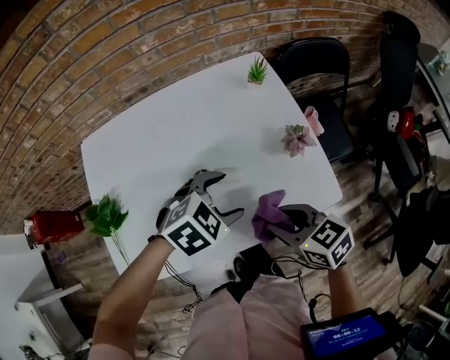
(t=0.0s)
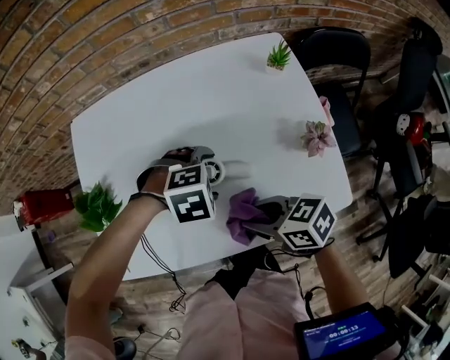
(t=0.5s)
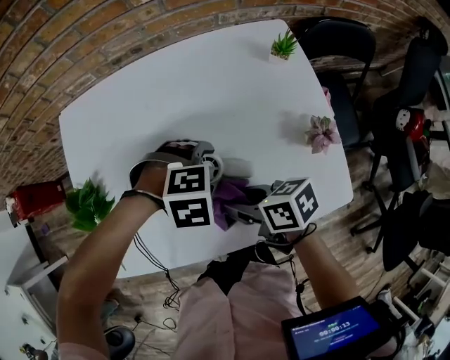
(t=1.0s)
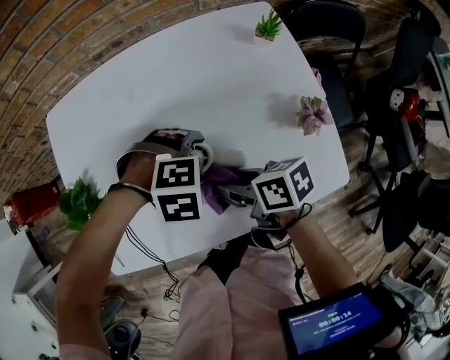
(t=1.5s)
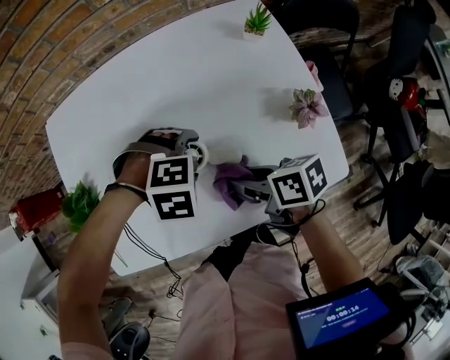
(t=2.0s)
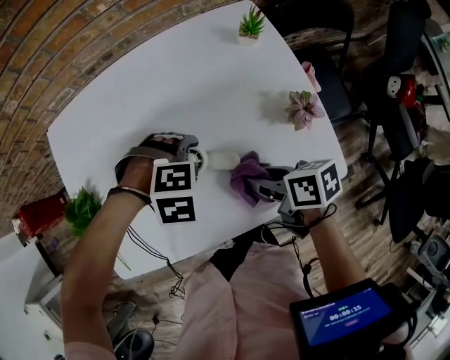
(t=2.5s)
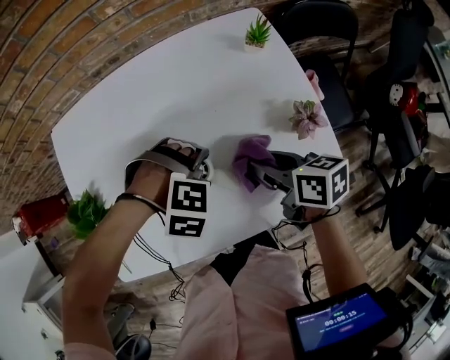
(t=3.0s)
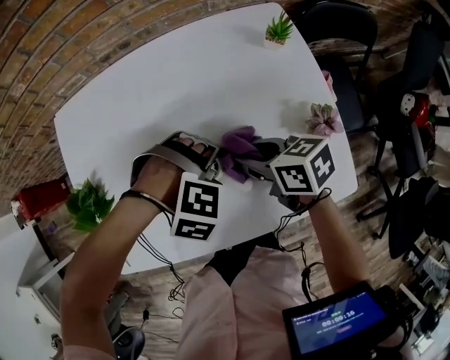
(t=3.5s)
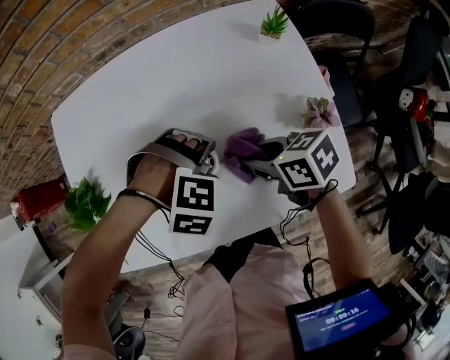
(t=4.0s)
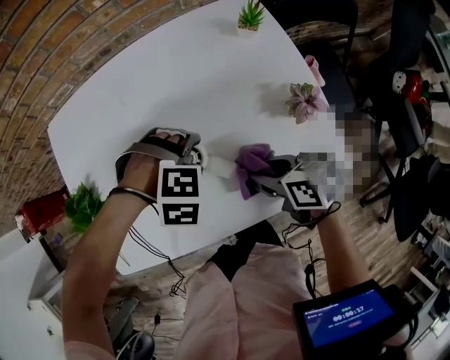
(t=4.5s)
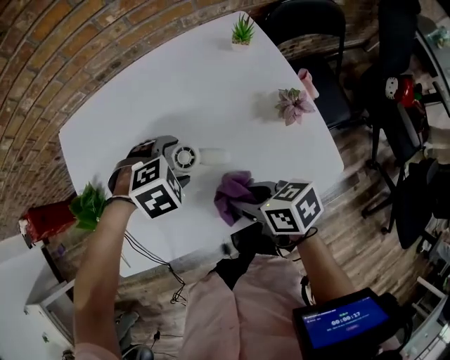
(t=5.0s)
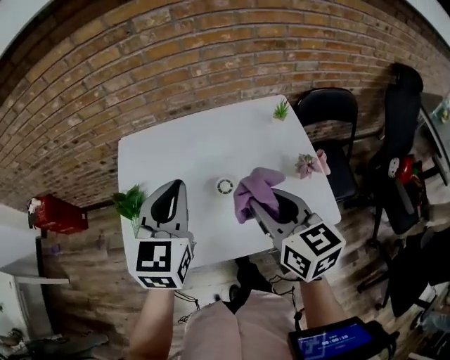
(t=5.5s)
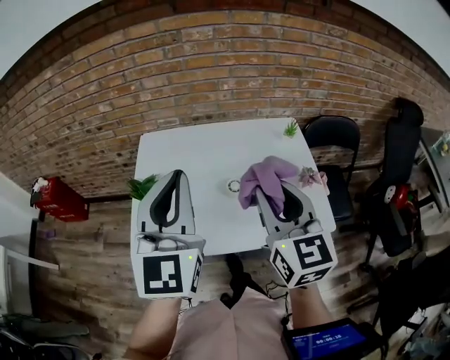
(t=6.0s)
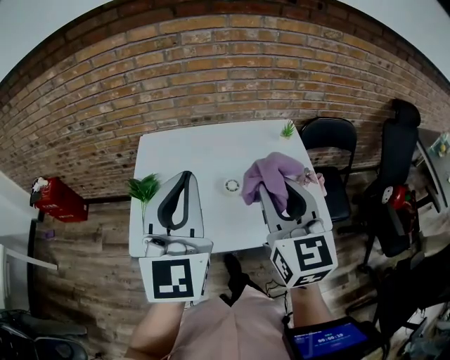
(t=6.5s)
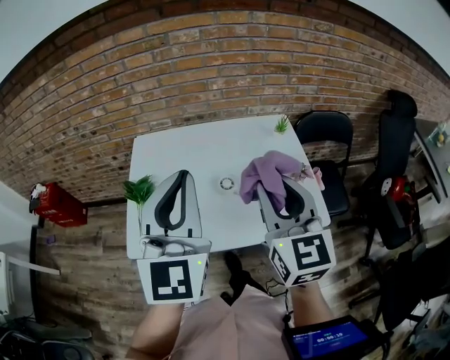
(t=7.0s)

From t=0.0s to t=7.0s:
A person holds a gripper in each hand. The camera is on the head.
From t=0.0s to t=2.0s: The right gripper ends up about 10 cm from where it was, and swivels about 40 degrees, while the left gripper goes some 10 cm downward, and turns by roughly 40 degrees.
From t=2.0s to t=3.5s: The right gripper shifts by about 10 cm, and swivels roughly 20 degrees.
From t=3.5s to t=5.0s: The right gripper ends up some 15 cm from where it was. Meanwhile the left gripper turns by some 30 degrees.
From t=5.0s to t=7.0s: The grippers both shift upward by roughly 35 cm. The right gripper angles its fingers upward, by approximately 30 degrees. Meanwhile the left gripper points its fingers about 80 degrees further upward, and closes.

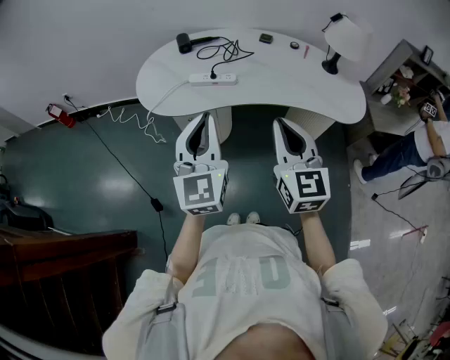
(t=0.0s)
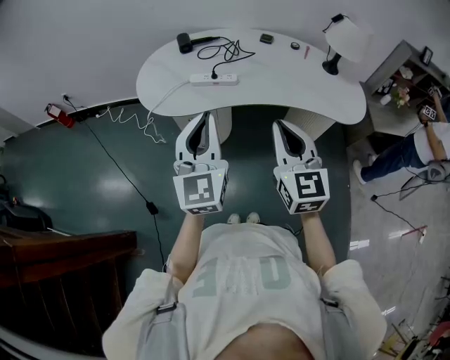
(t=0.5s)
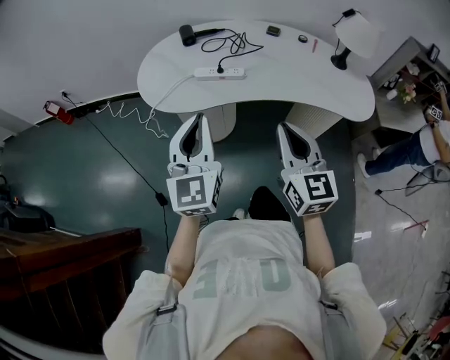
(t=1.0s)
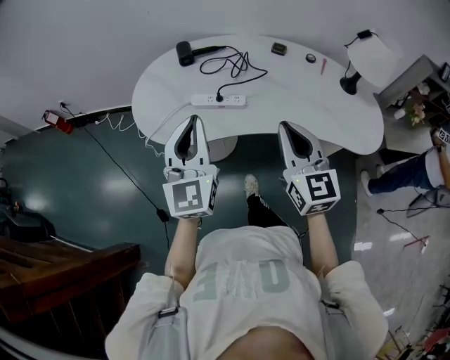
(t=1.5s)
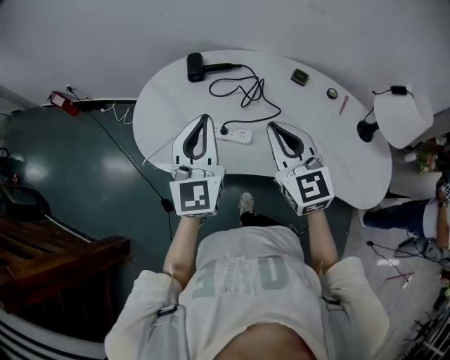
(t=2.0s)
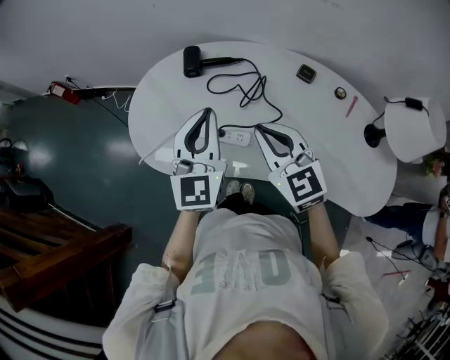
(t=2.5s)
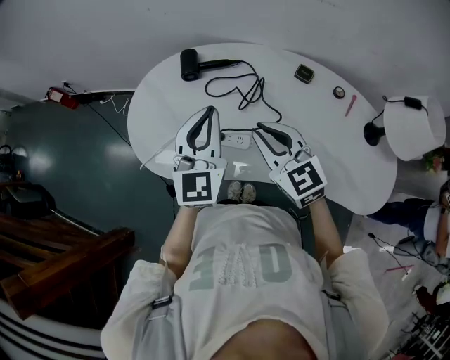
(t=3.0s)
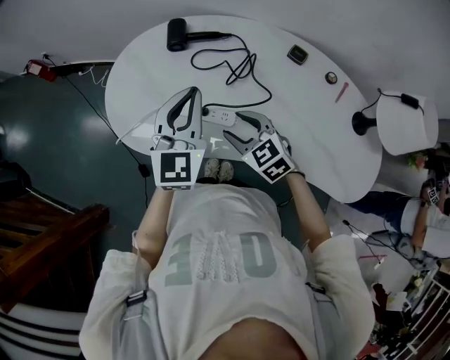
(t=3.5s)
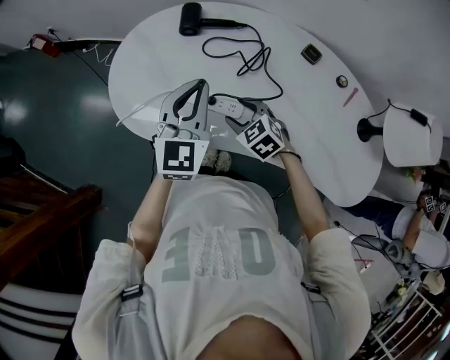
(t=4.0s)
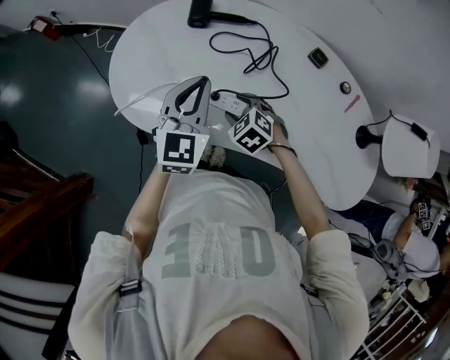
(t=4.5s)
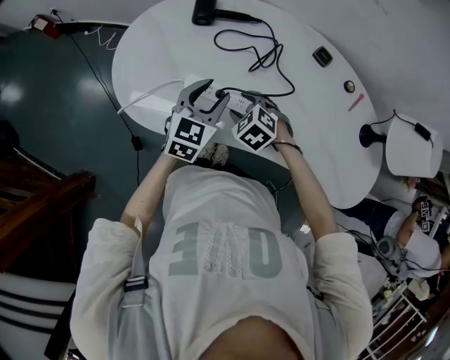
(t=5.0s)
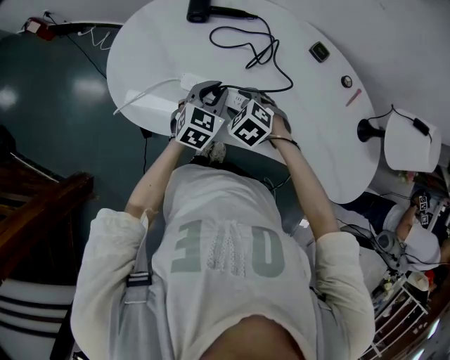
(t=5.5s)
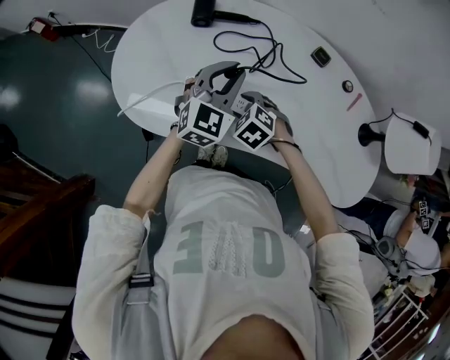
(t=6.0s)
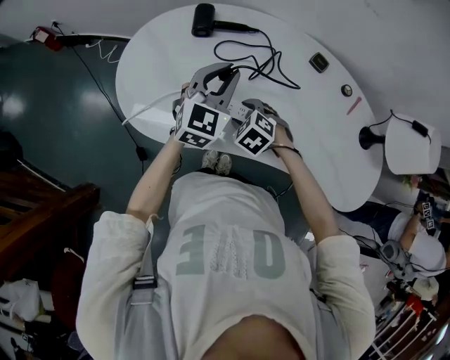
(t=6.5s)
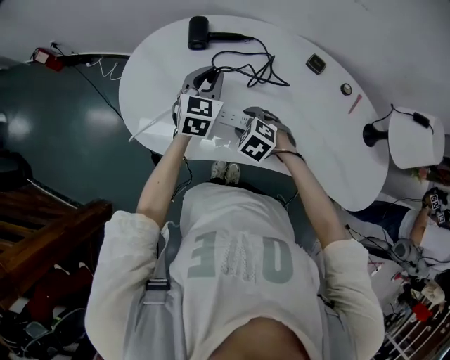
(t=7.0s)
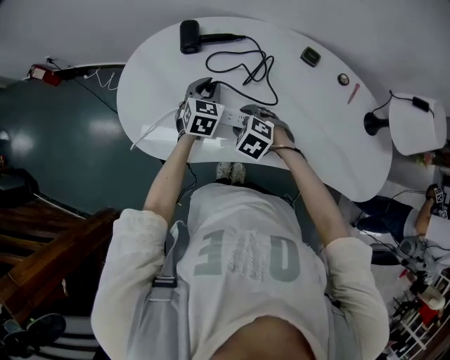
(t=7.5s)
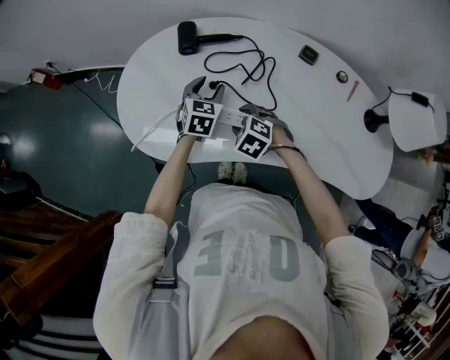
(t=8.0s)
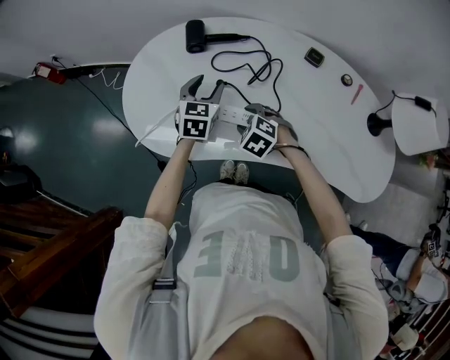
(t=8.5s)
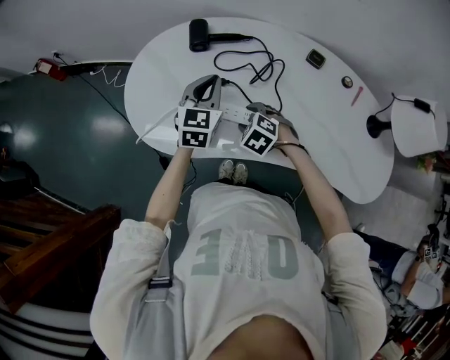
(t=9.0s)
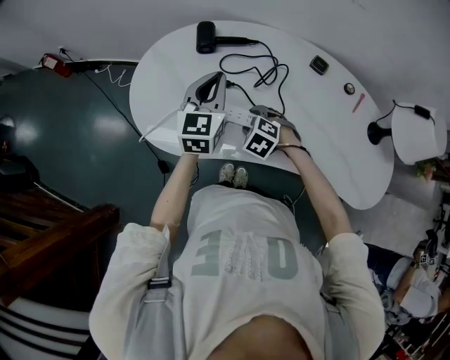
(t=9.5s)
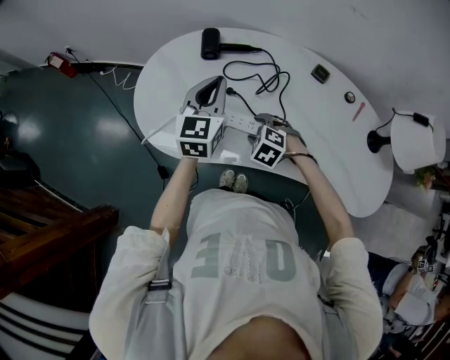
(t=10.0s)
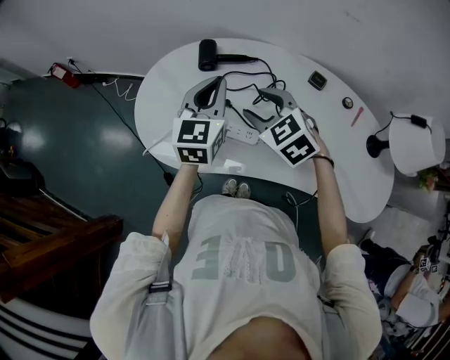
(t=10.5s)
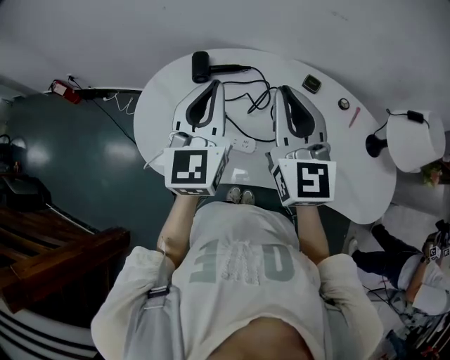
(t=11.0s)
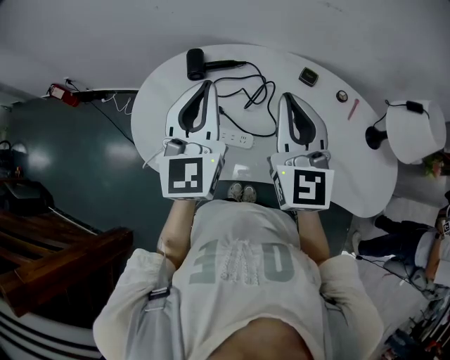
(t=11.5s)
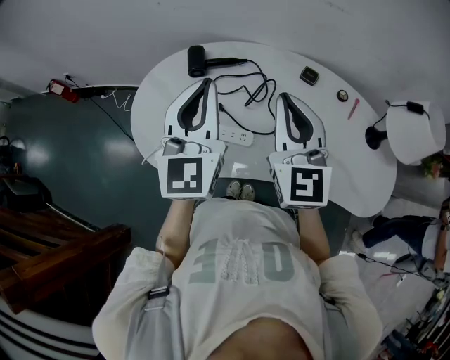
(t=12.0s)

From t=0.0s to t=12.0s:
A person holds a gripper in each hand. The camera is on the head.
From t=0.0s to t=2.0s: The grippers both shift forward by approximately 30 cm. The right gripper changes its angle by approximately 20 degrees.
From t=2.0s to t=4.0s: The right gripper heads downward, covering approximately 25 cm, tilts its fingers some 40 degrees downward, and opens its fingers. The left gripper shifts roughly 10 cm downward and forward.
From t=4.0s to t=6.0s: The left gripper goes roughly 5 cm to the right, moves some 15 cm downward and comes back, and opens and closes again.
From t=6.0s to t=8.0s: The left gripper moves downward and forward, some 15 cm, rotates approximately 20 degrees, and opens its fingers.
From t=8.0s to t=10.0s: The left gripper heads upward, covering some 15 cm, changes its angle by approximately 30 degrees, and closes.
From t=10.0s to t=12.0s: The left gripper moves upward, roughly 15 cm. Meanwhile the right gripper shifts about 35 cm upward, points its fingers roughly 70 degrees further upward, and closes.

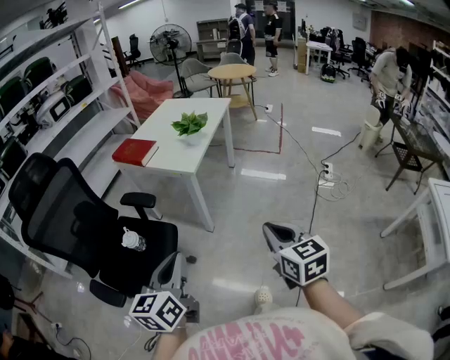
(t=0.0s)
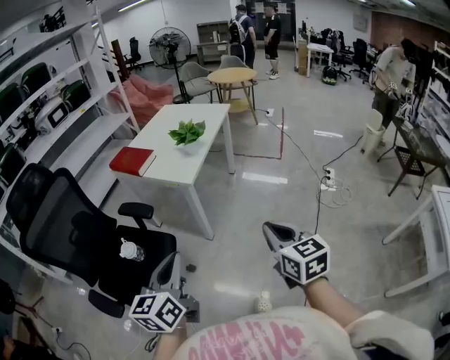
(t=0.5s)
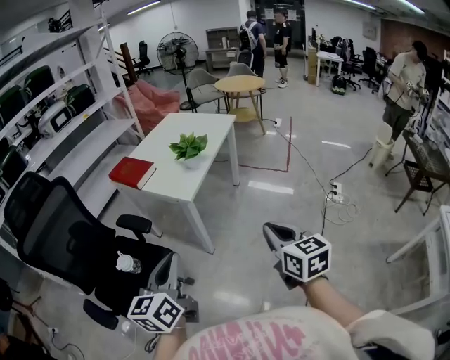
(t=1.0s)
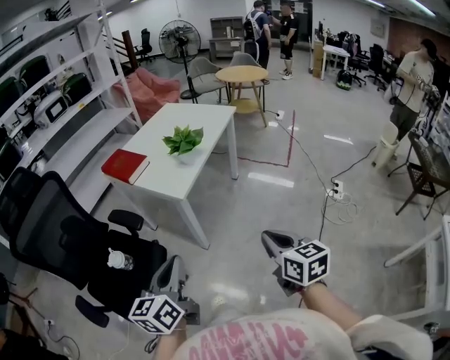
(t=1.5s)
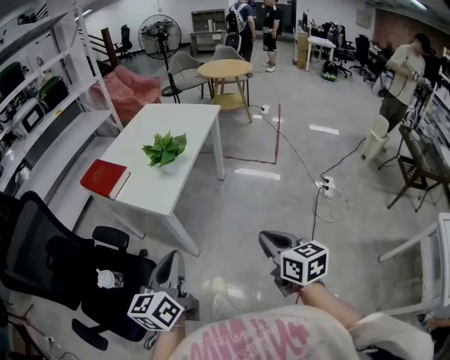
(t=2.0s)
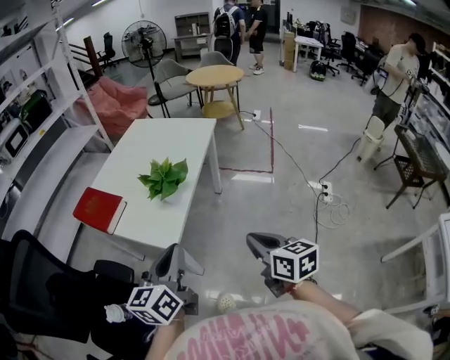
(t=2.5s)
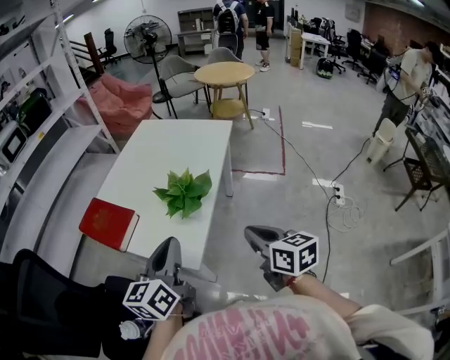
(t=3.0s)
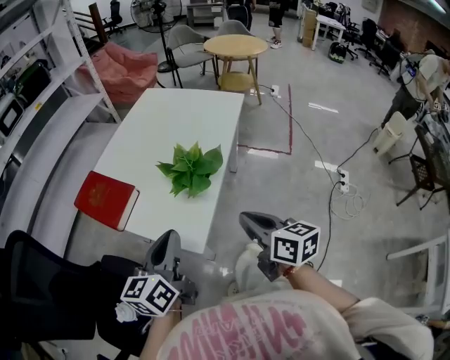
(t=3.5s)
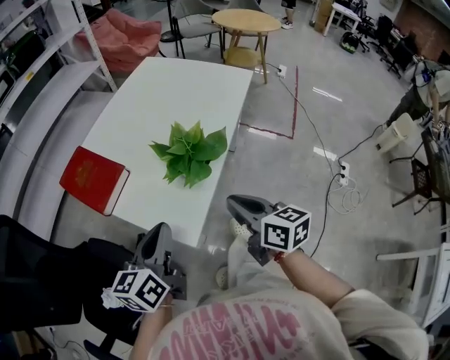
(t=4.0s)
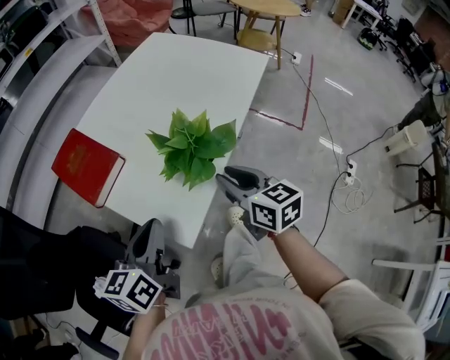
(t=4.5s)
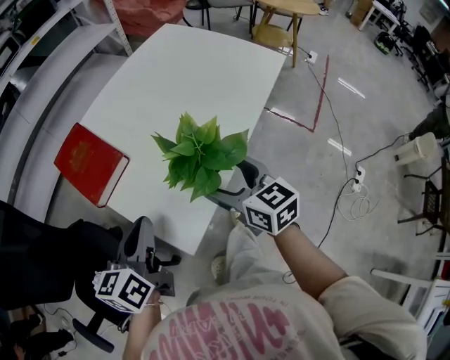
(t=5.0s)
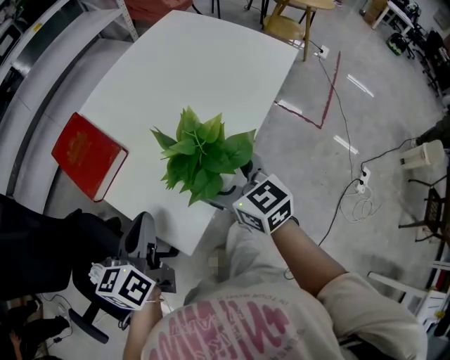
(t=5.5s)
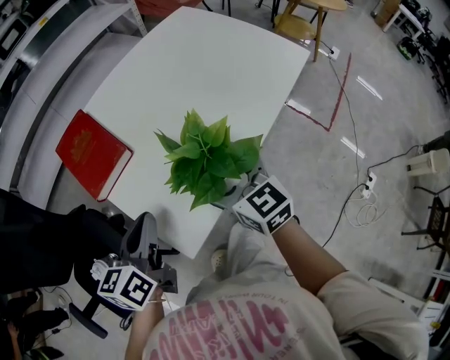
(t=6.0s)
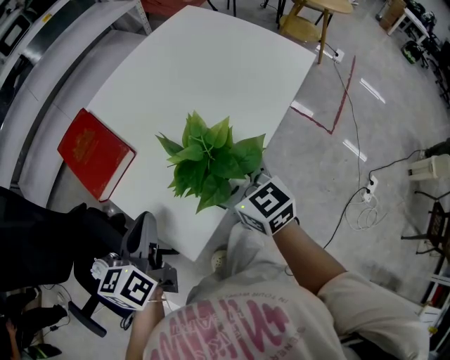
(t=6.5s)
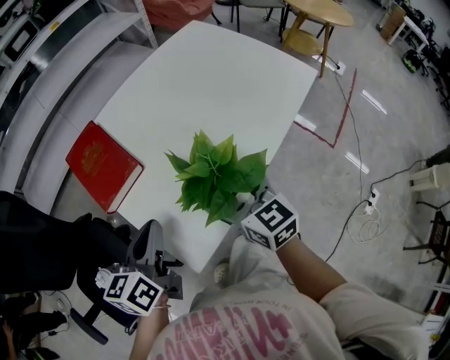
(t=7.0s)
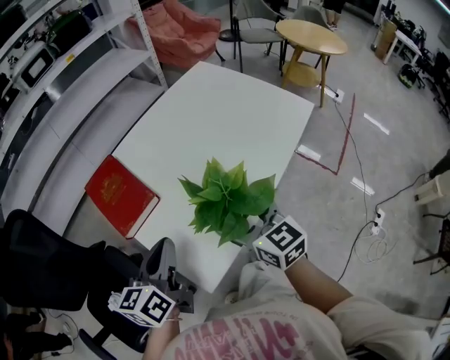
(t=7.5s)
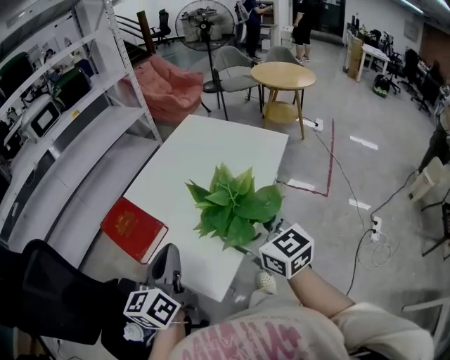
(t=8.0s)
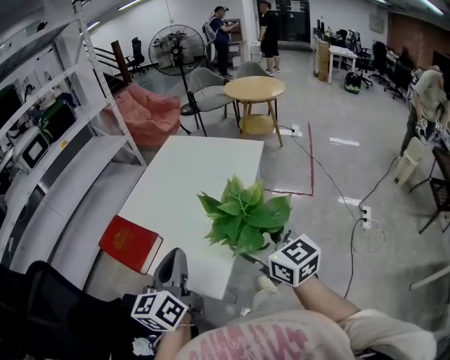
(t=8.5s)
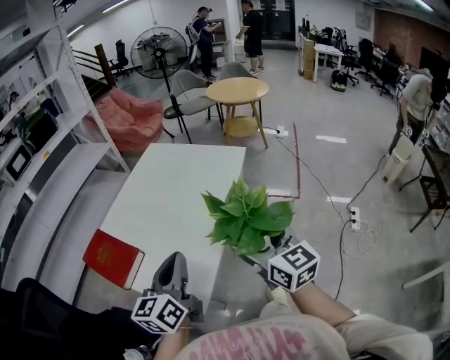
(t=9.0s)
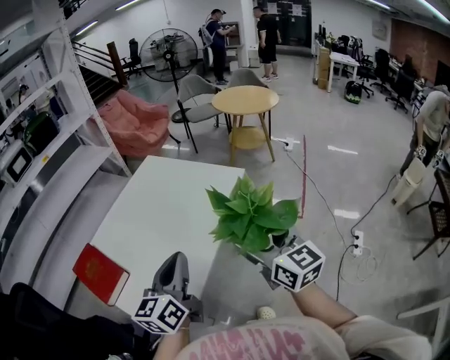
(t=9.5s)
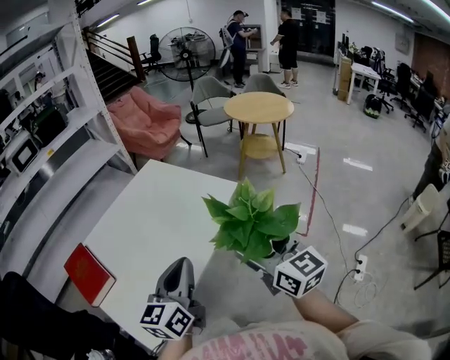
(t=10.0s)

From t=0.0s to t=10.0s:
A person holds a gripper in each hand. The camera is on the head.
From t=0.0s to t=2.0s: Both grippers travel together forward and to the right, about 25 cm.
From t=2.0s to t=4.0s: The left gripper is displaced forward by approximately 30 cm. Meanwhile the right gripper moves forward and to the left, about 35 cm.
From t=4.0s to t=6.0s: The right gripper shifts approximately 15 cm forward, changes its angle by approximately 30 degrees, and opens its fingers, while the left gripper goes roughly 5 cm forward.
From t=6.0s to t=8.0s: Both grippers travel together upward, some 15 cm.
From t=8.0s to t=10.0s: The two grippers go roughly 30 cm to the right.
